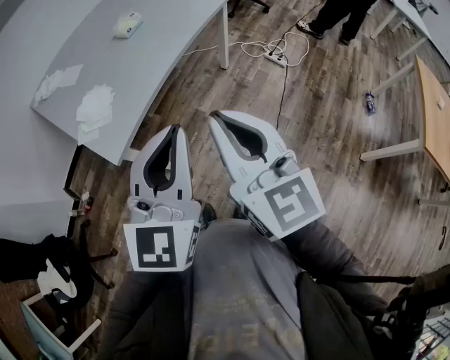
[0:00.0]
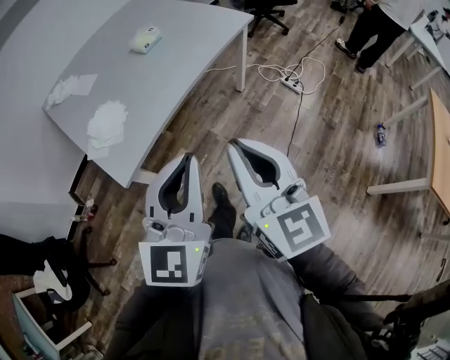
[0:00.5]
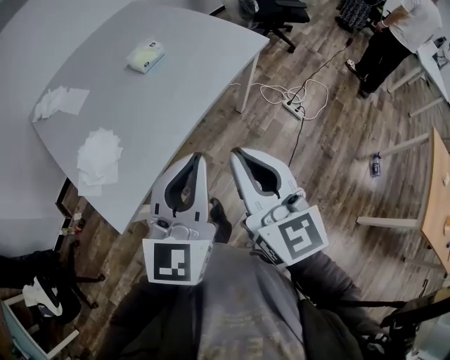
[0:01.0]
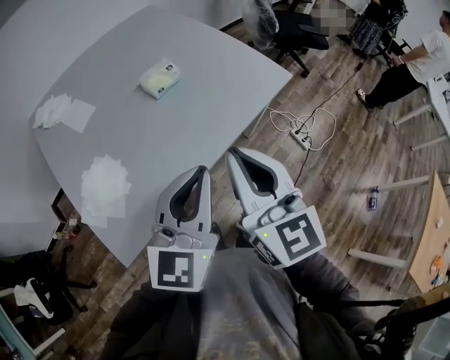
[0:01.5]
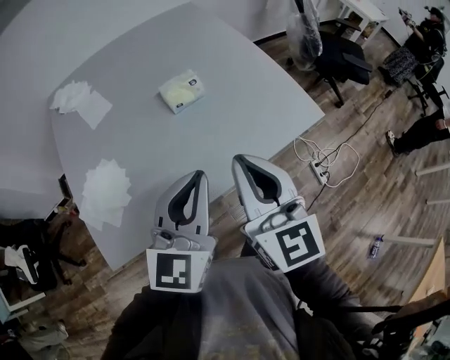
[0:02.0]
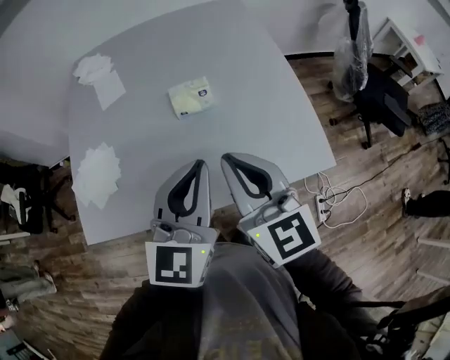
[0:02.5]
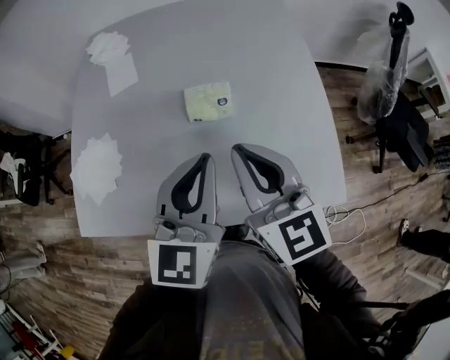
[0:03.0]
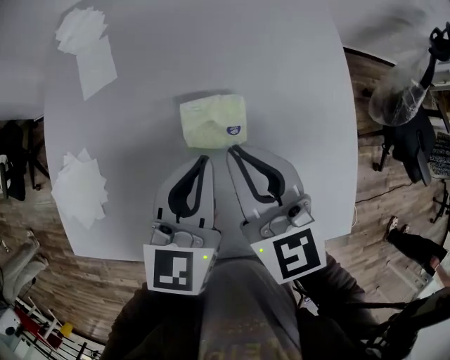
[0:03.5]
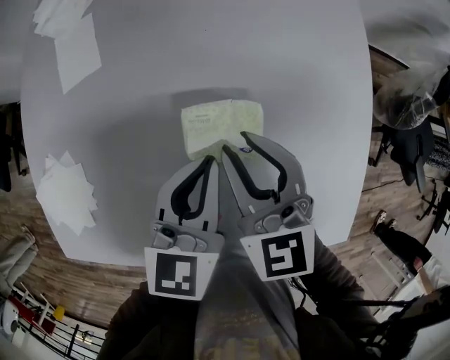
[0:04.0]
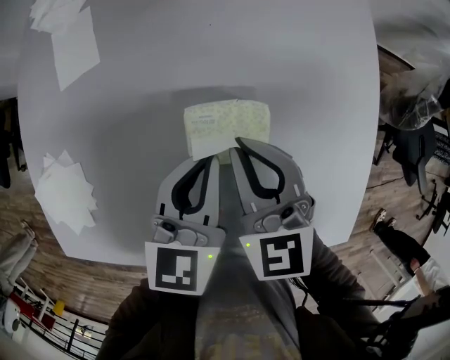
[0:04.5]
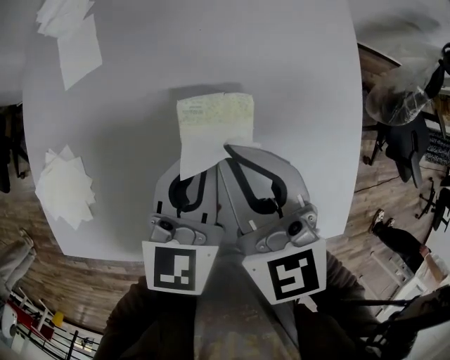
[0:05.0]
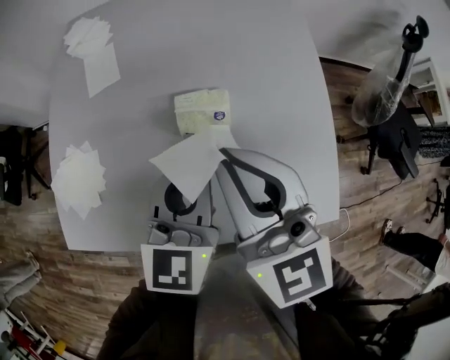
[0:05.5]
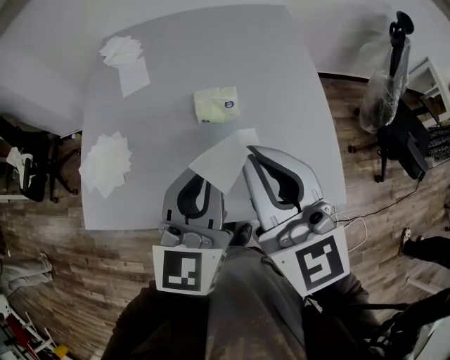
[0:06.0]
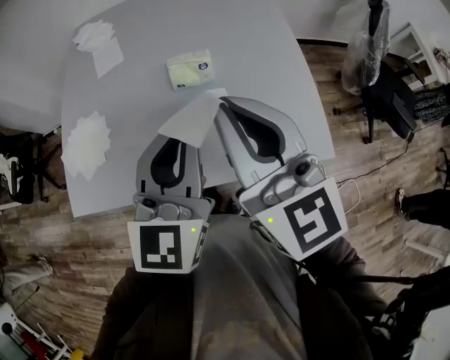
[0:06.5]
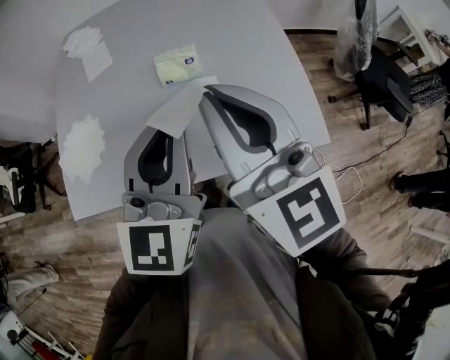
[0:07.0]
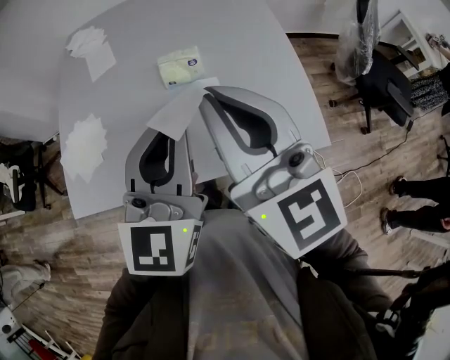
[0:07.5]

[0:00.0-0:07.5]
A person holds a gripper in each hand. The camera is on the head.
0:00.0 to 0:02.0: Both grippers are carried forward, approximately 50 cm. The right gripper turns by roughly 20 degrees. Meanwhile the left gripper turns by approximately 20 degrees.
0:02.0 to 0:04.0: The right gripper ends up about 40 cm from where it was, and swivels about 40 degrees; the left gripper moves some 40 cm, and swivels roughly 40 degrees.
0:04.0 to 0:05.5: The grippers both shift upward and backward by roughly 20 cm. The right gripper swivels approximately 20 degrees.
0:05.5 to 0:07.5: The grippers both shift backward and upward by approximately 20 cm.

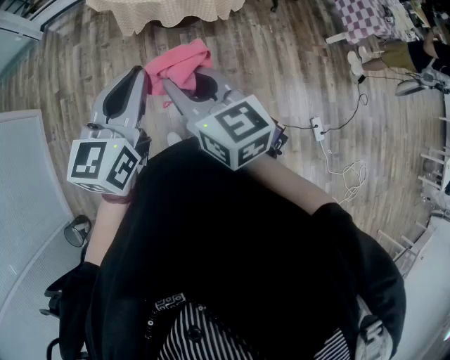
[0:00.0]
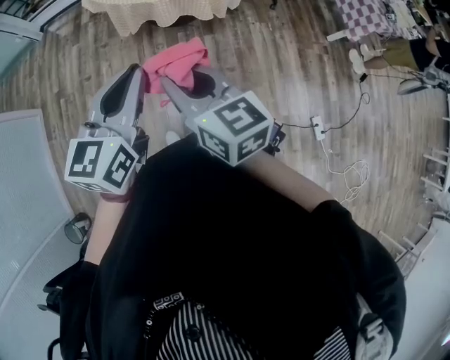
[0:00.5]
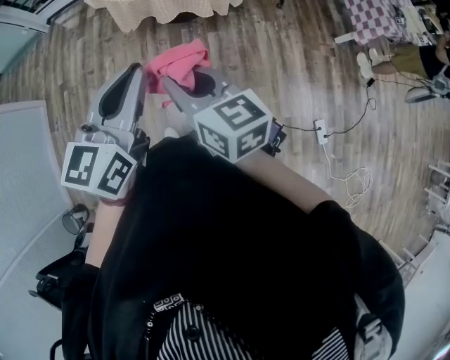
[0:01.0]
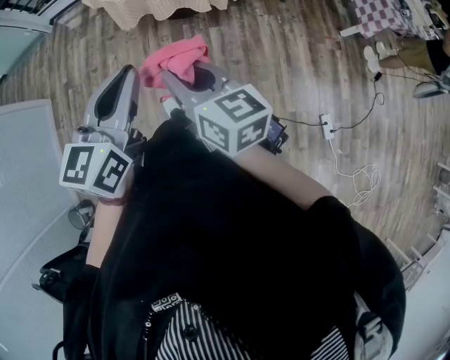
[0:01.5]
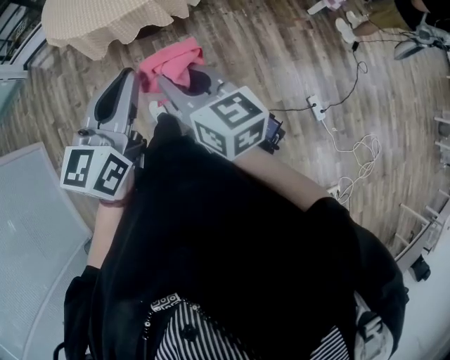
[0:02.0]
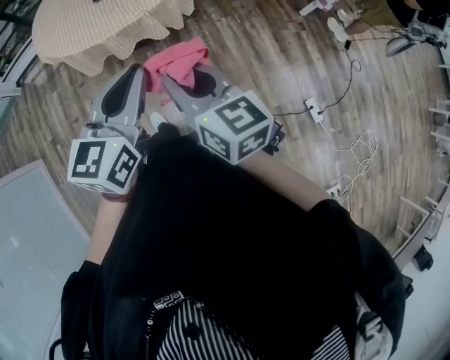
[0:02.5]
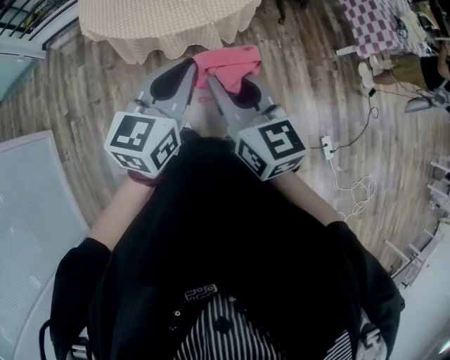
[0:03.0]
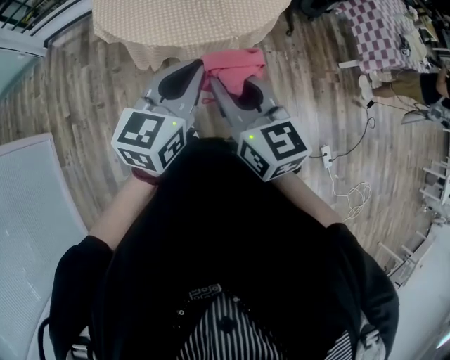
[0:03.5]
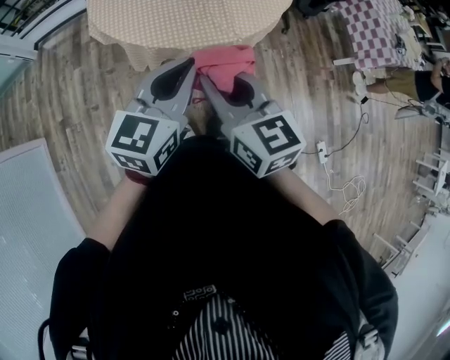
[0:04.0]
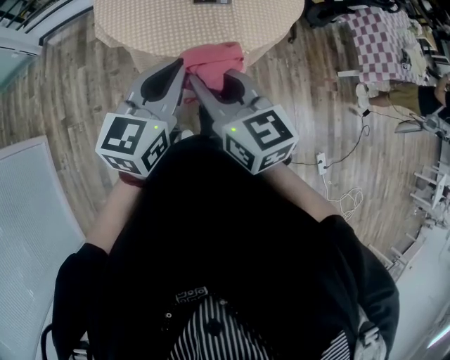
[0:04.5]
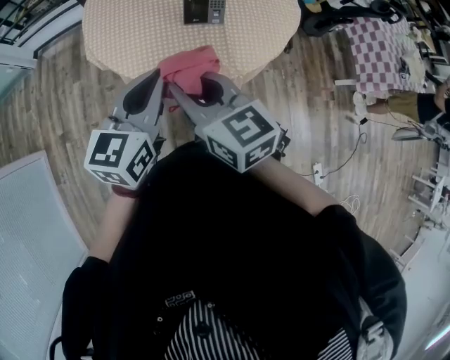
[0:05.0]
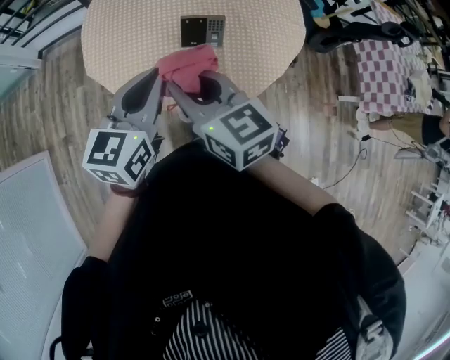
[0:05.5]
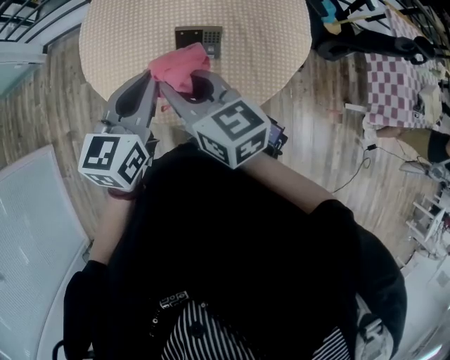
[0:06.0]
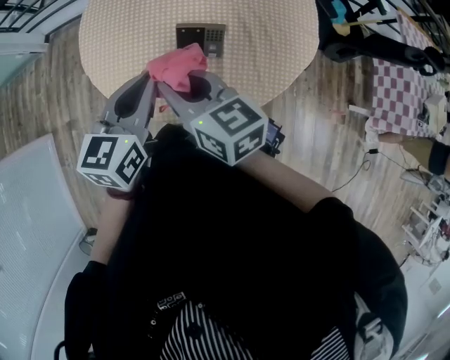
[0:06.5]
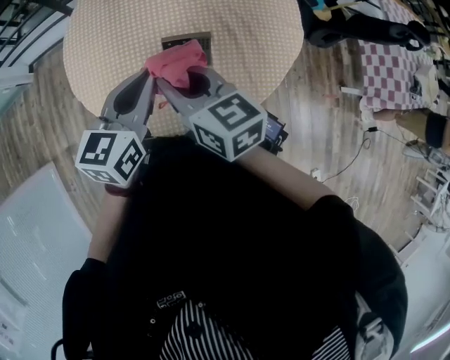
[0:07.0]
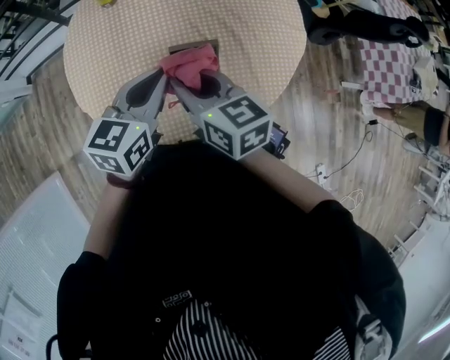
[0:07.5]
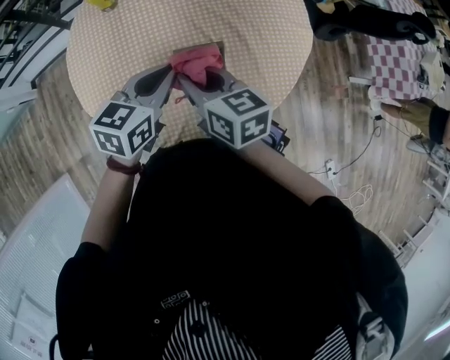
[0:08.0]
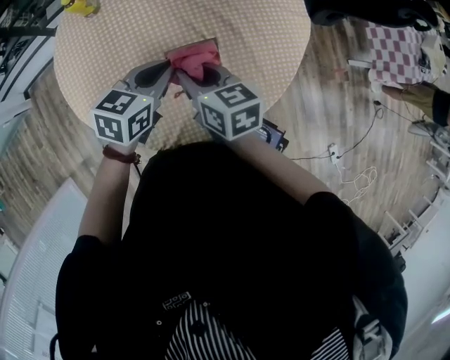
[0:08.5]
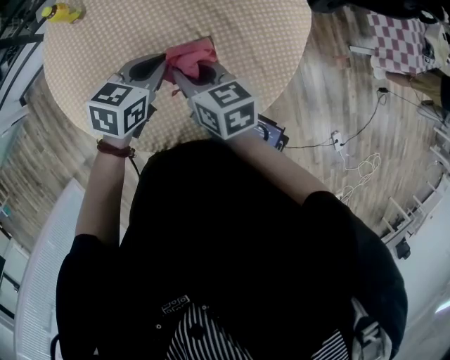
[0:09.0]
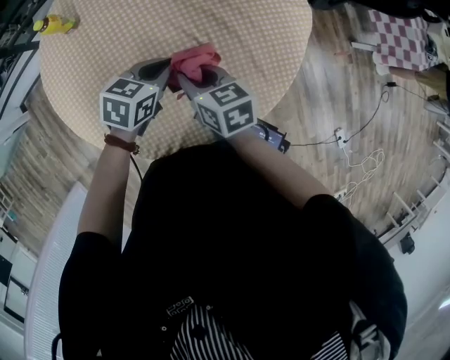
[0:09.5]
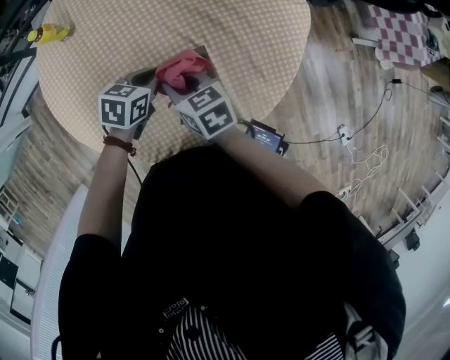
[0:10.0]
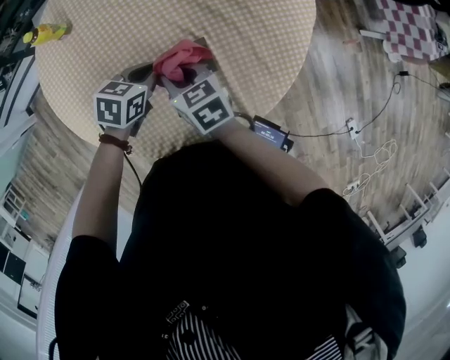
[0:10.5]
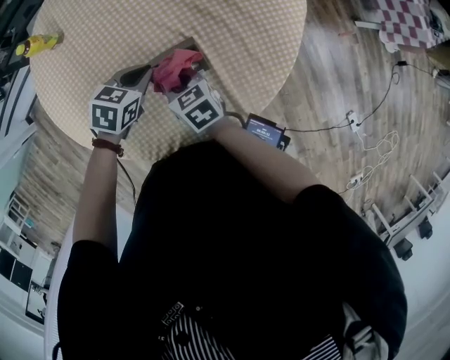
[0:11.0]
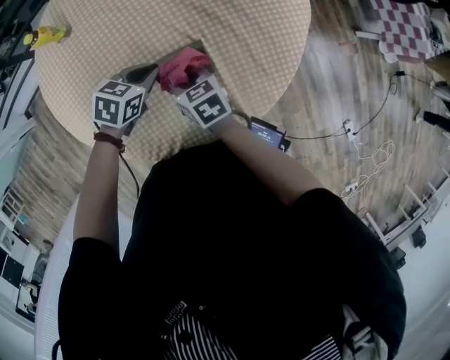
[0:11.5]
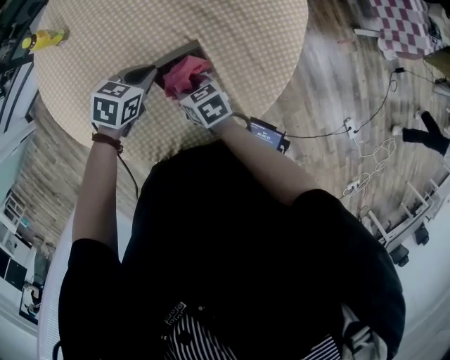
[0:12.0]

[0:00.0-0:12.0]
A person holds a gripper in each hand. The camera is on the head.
0:00.0 to 0:02.0: The two grippers go about 20 cm to the right.
0:02.0 to 0:04.0: Both grippers are carried to the left and forward, some 40 cm.
0:04.0 to 0:06.0: The two grippers go roughly 40 cm forward. The right gripper changes its angle by roughly 20 degrees.
0:06.0 to 0:08.0: The grippers both shift forward and downward by about 15 cm. The left gripper changes its angle by approximately 30 degrees. Meanwhile the right gripper rotates roughly 20 degrees.
0:08.0 to 0:10.0: Both grippers move downward and forward, roughly 20 cm. The left gripper swivels some 30 degrees.
0:10.0 to 0:12.0: The right gripper heads downward, covering roughly 10 cm.

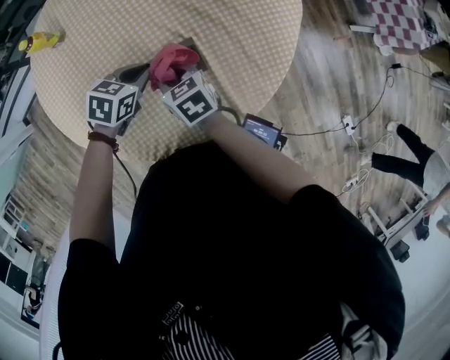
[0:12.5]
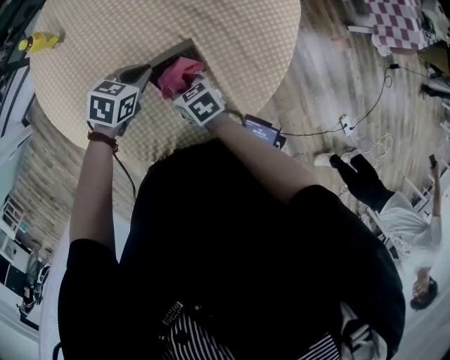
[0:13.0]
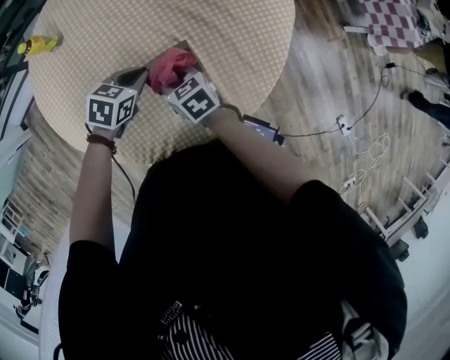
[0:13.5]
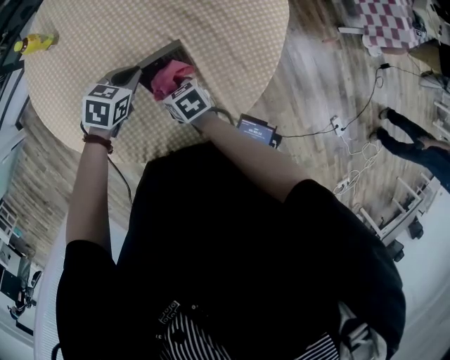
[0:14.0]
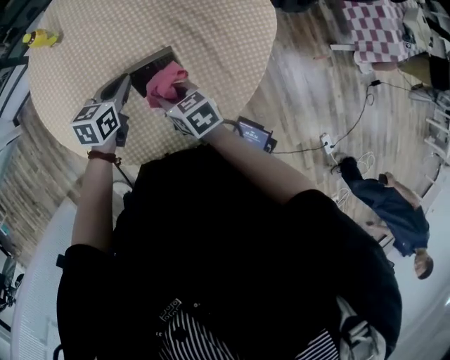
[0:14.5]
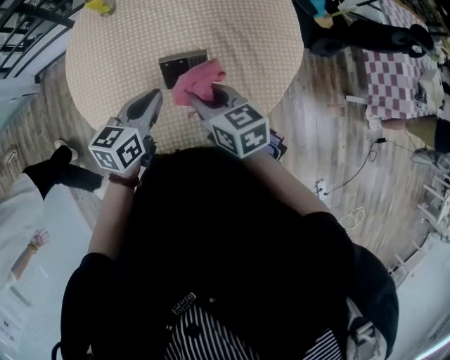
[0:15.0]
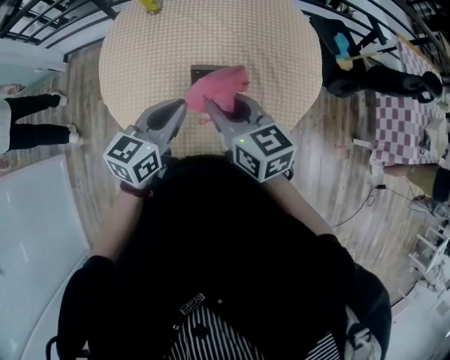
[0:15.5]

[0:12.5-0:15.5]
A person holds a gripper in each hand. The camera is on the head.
0:12.5 to 0:14.0: The right gripper swings up and down, about 5 cm each way, with 2 reversals.
0:14.0 to 0:15.5: The right gripper travels upward by roughly 35 cm, and points its fingers some 30 degrees further upward. The left gripper travels upward and backward by about 30 cm, and points its fingers approximately 40 degrees further upward.

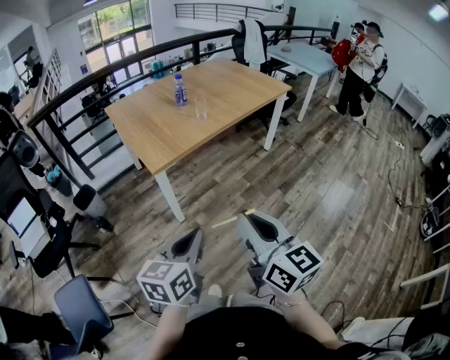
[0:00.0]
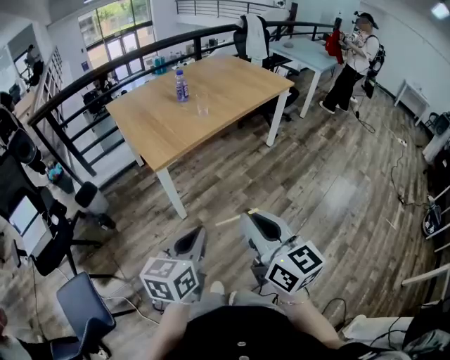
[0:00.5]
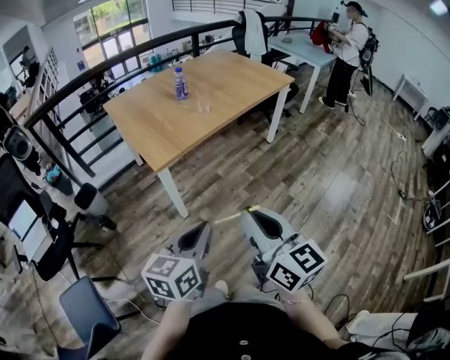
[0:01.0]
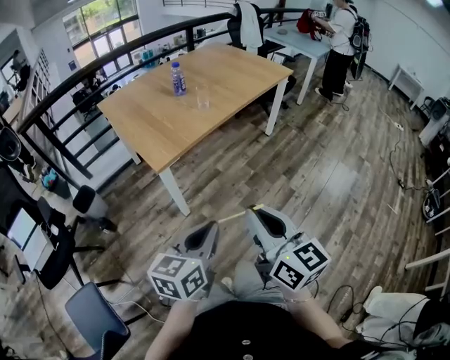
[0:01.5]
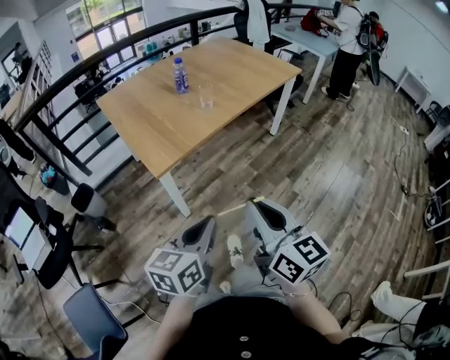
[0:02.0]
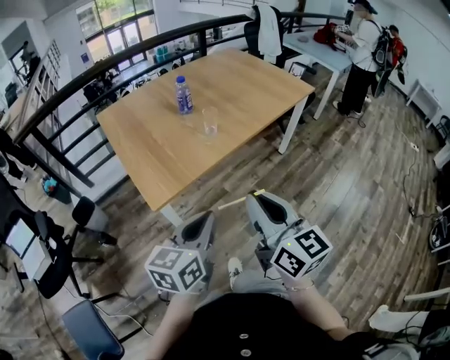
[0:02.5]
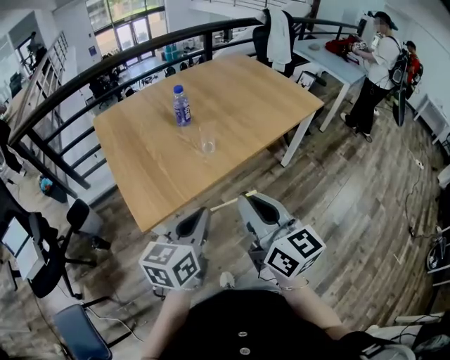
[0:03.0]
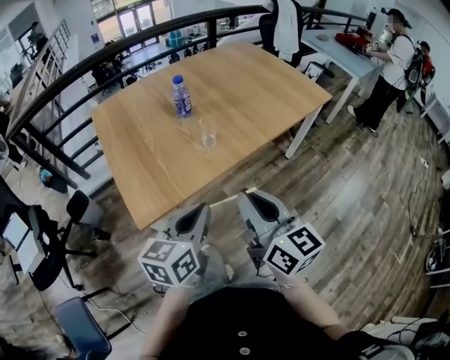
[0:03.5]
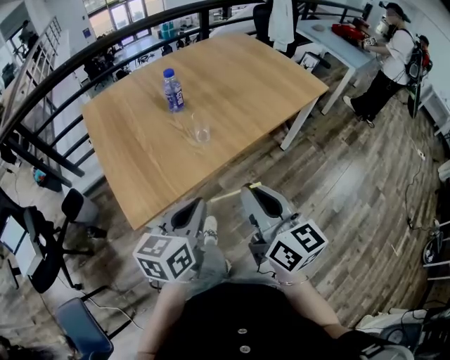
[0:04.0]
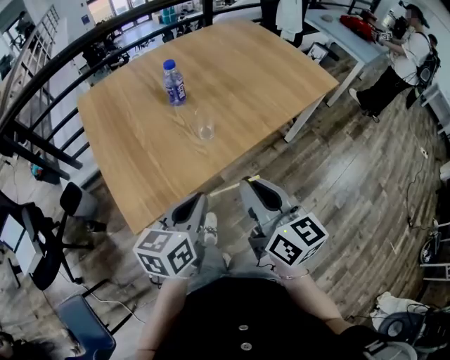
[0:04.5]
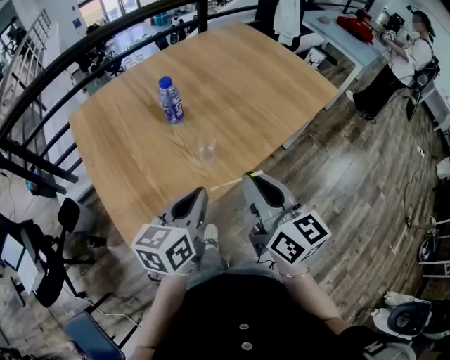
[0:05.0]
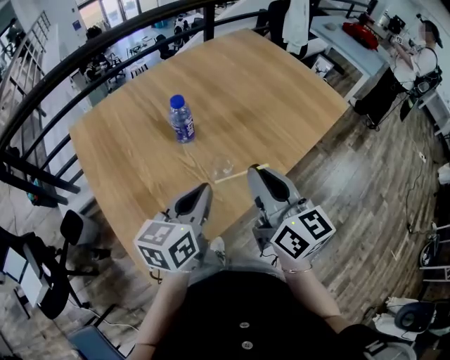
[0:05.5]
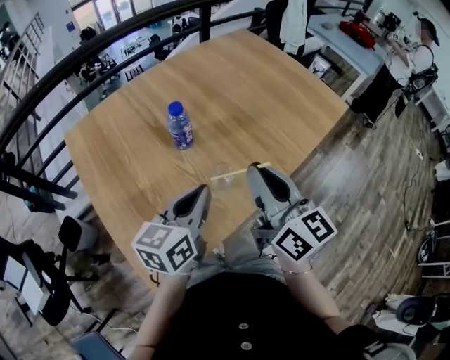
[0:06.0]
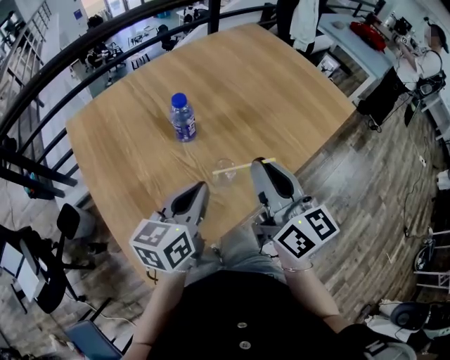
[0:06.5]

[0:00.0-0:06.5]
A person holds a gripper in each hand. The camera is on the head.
0:00.0 to 0:02.0: Both grippers move forward, approximately 15 cm.
0:02.0 to 0:04.5: Both grippers travel together forward, about 40 cm.
0:04.5 to 0:06.5: The two grippers go approximately 20 cm forward.
